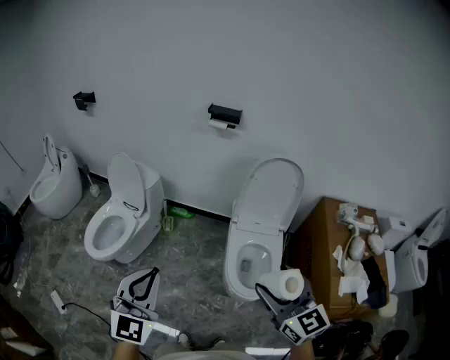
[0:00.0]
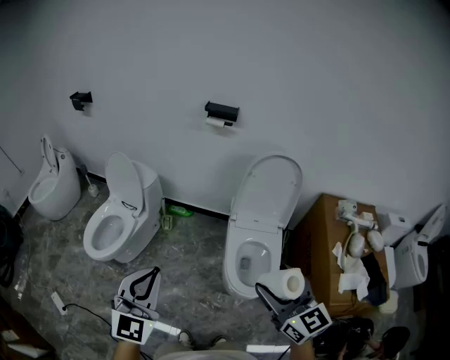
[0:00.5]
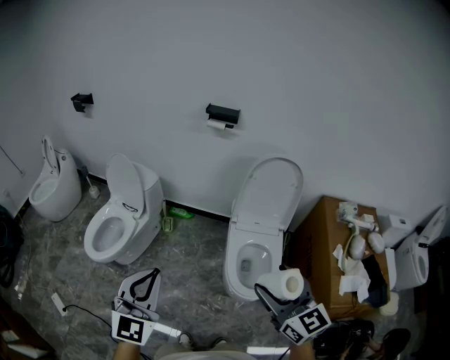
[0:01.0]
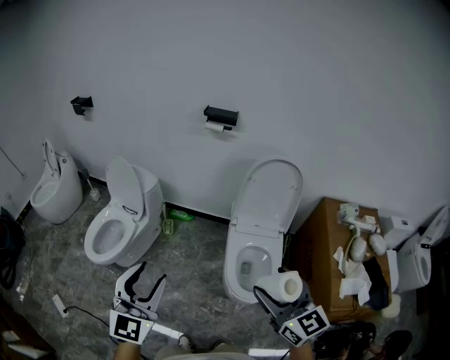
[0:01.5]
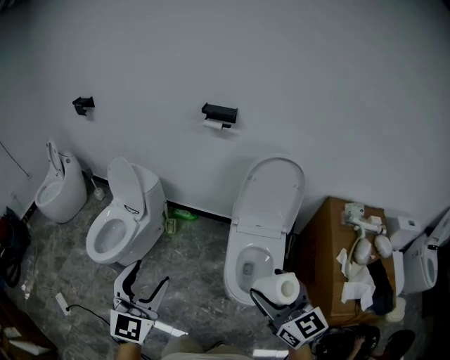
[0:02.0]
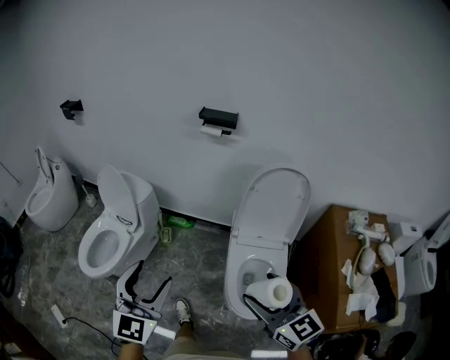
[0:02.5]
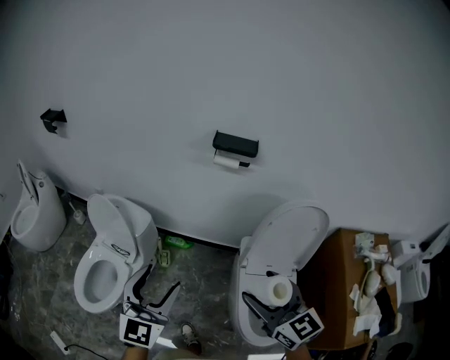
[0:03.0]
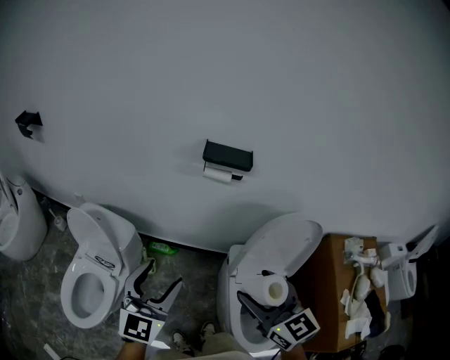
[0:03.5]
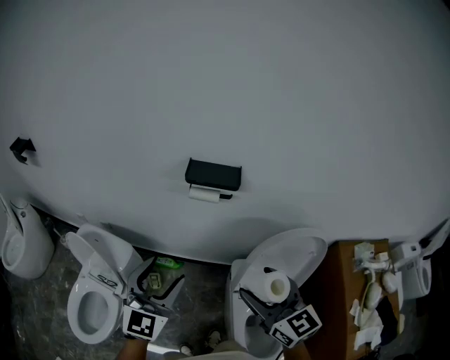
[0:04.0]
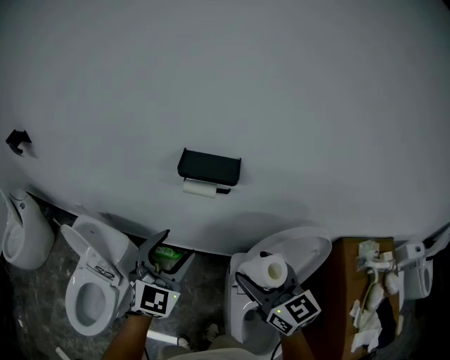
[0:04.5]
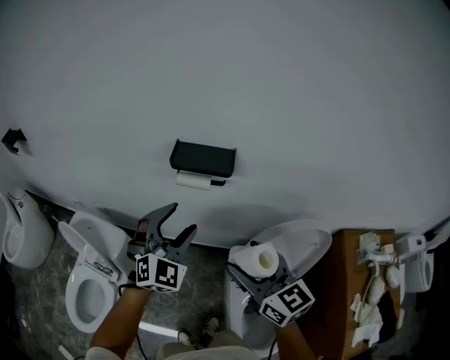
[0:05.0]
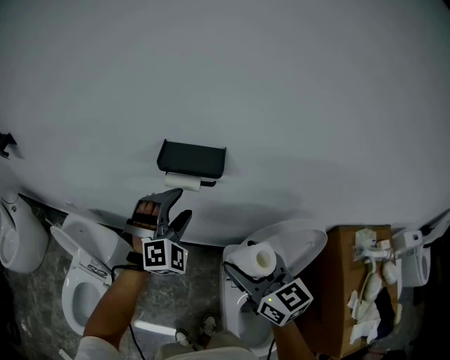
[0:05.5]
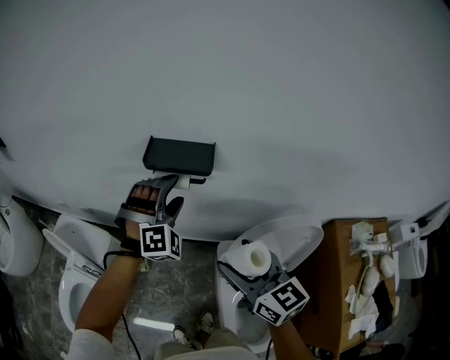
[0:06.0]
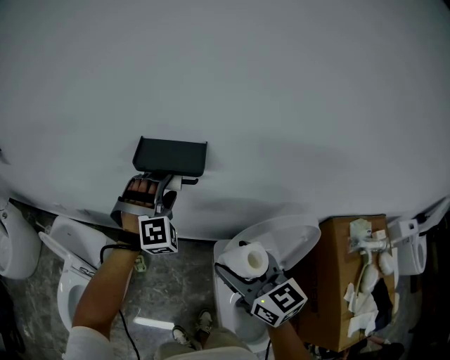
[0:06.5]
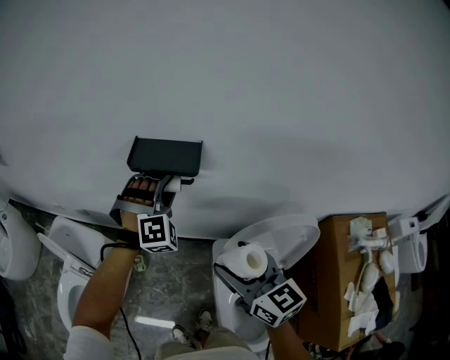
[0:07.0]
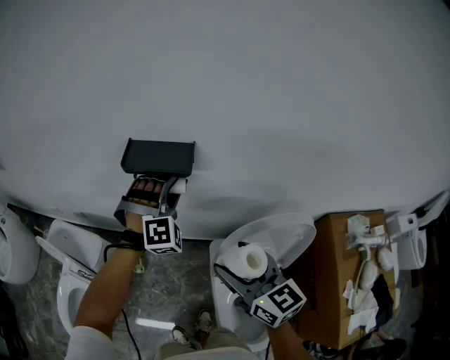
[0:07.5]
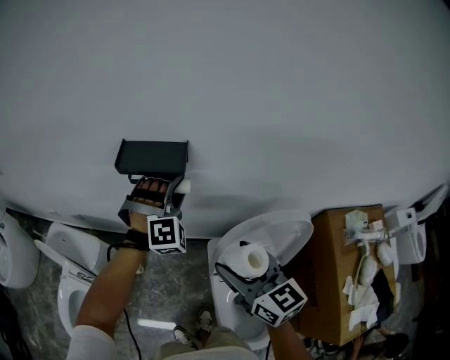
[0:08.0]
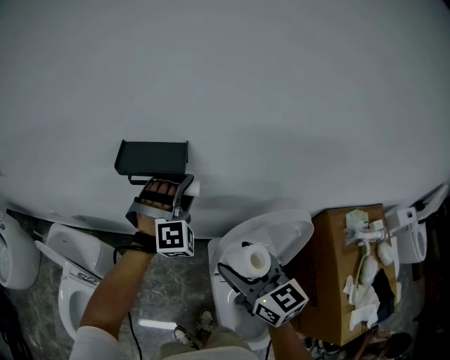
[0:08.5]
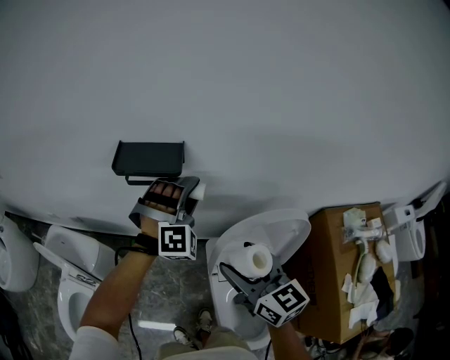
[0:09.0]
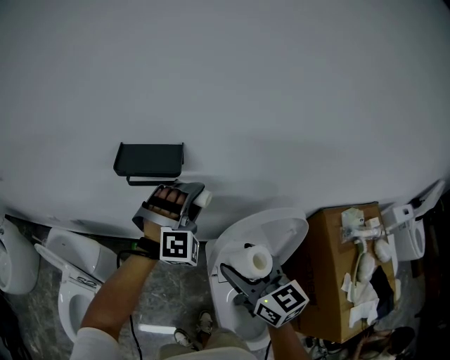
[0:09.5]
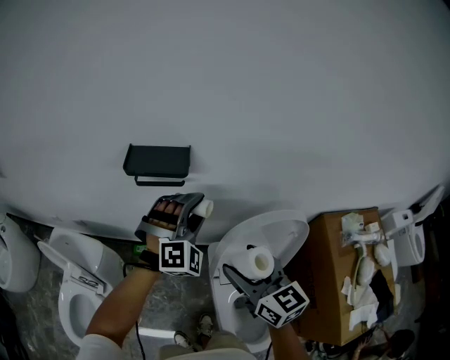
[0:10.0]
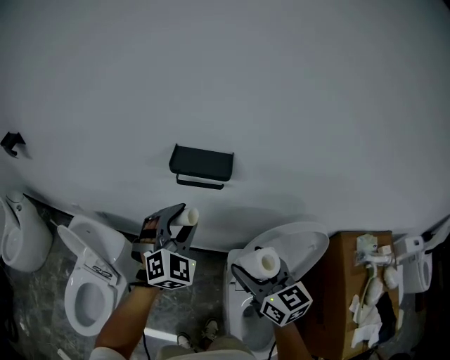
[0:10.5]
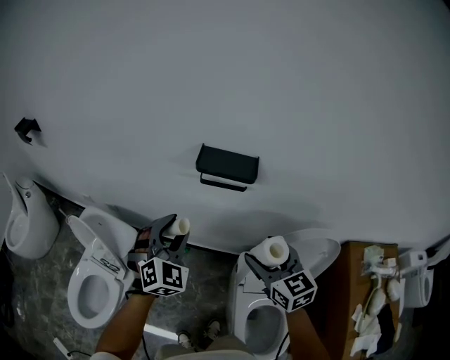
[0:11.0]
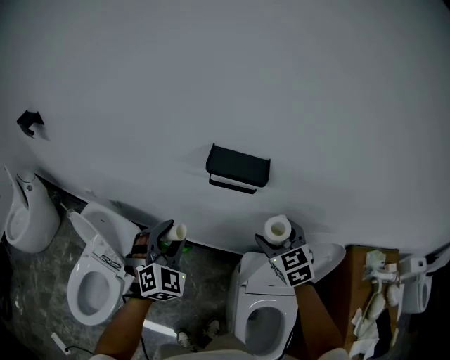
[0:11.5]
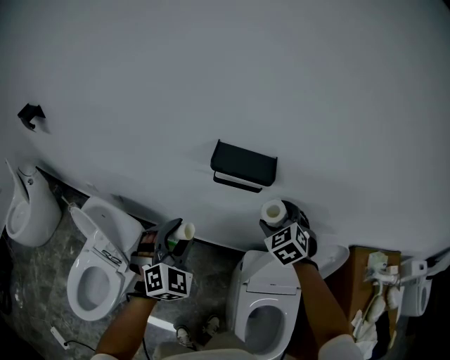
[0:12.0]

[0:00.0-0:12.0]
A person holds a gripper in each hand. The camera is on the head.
0:00.0 to 0:02.0: The left gripper shifts by some 5 cm, and opens up; the right gripper ends up about 5 cm from where it was.
0:02.0 to 0:04.0: The pair of grippers is taken forward, approximately 50 cm.
0:04.0 to 0:06.0: The right gripper moves forward and downward, about 10 cm. The left gripper shifts some 25 cm forward and to the right, and rolls clockwise, seen from behind, by about 50 degrees.
0:06.0 to 0:08.0: The left gripper shifts some 10 cm to the right, and closes up.
0:08.0 to 0:10.0: The left gripper moves backward, some 10 cm.
0:10.0 to 0:12.0: The right gripper is displaced forward by approximately 20 cm, and twists approximately 50 degrees counterclockwise, seen from behind, while the left gripper goes roughly 25 cm to the left, and turns by approximately 30 degrees.

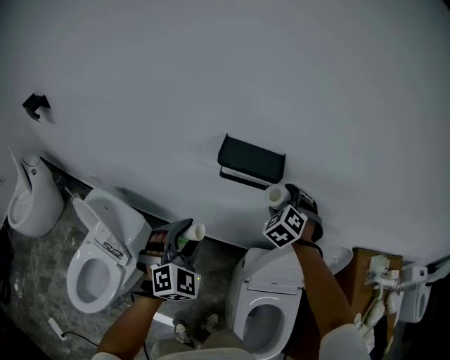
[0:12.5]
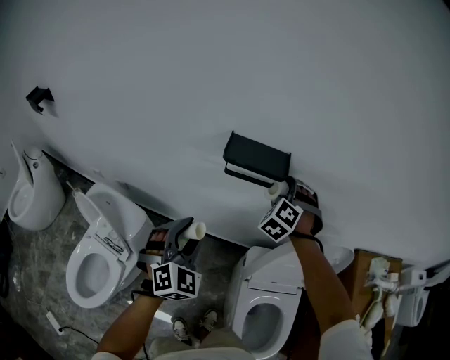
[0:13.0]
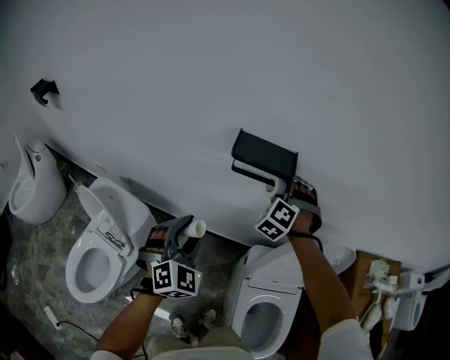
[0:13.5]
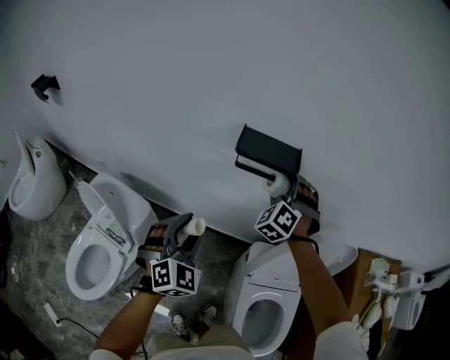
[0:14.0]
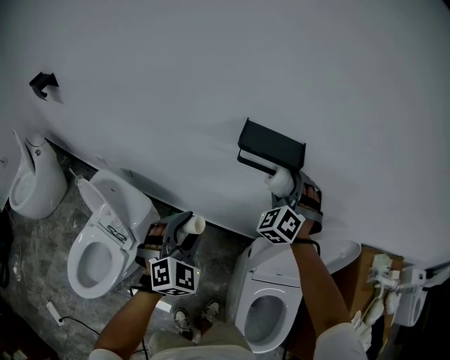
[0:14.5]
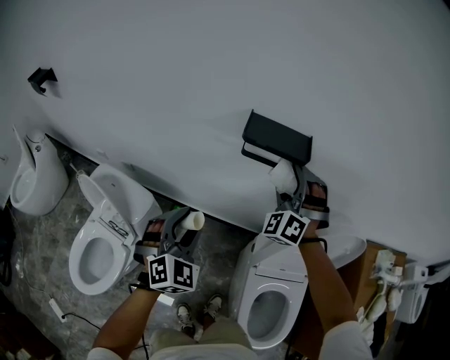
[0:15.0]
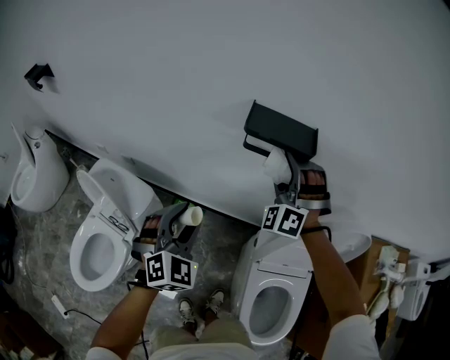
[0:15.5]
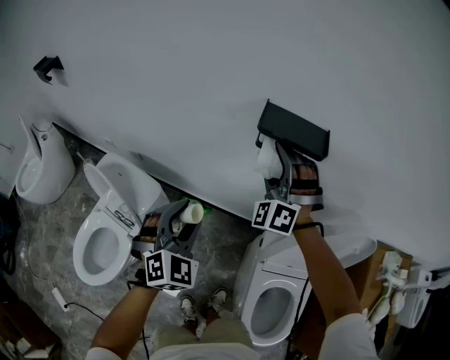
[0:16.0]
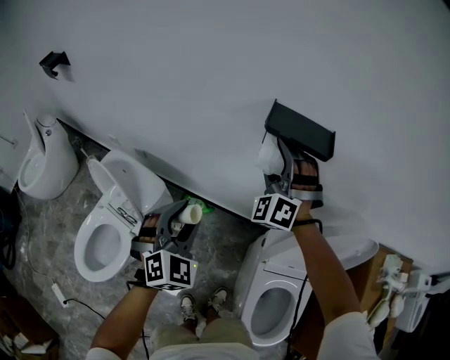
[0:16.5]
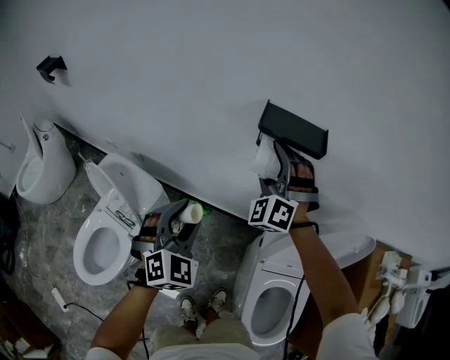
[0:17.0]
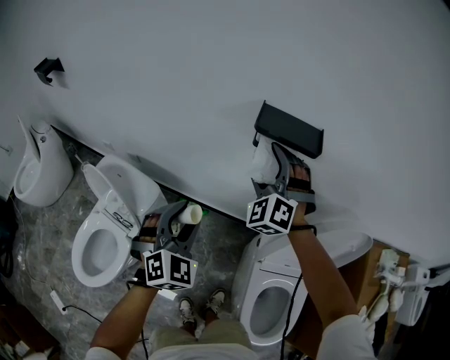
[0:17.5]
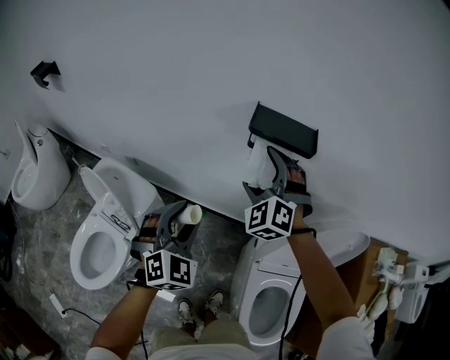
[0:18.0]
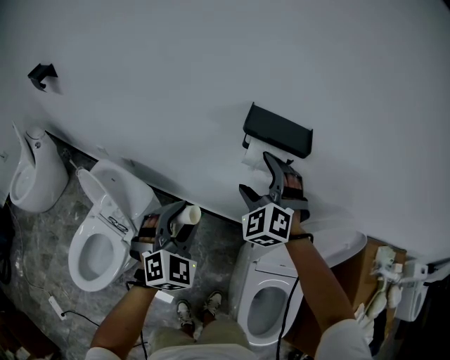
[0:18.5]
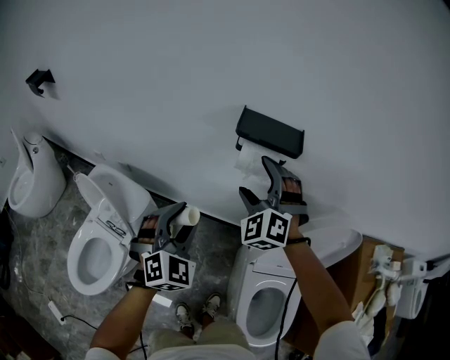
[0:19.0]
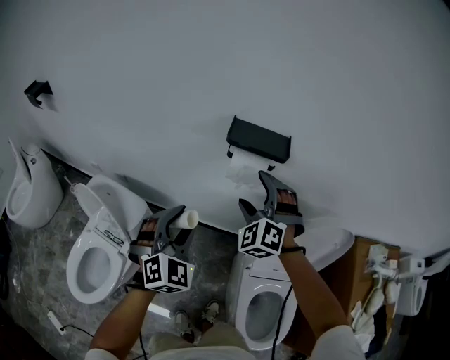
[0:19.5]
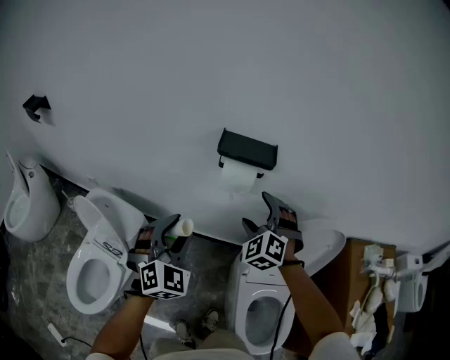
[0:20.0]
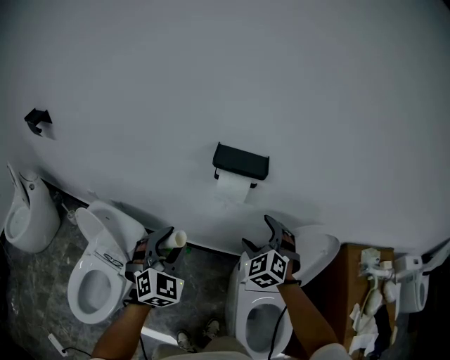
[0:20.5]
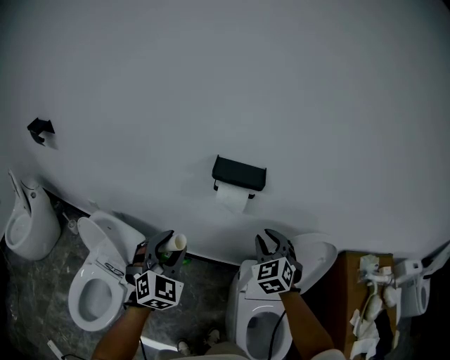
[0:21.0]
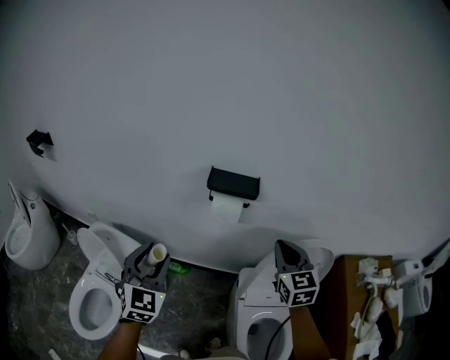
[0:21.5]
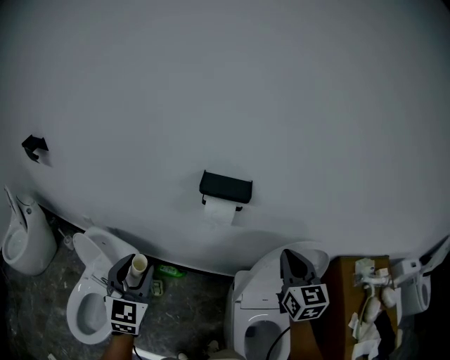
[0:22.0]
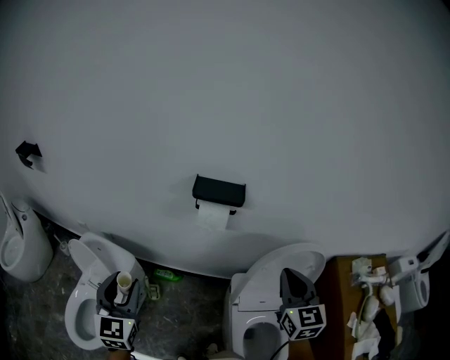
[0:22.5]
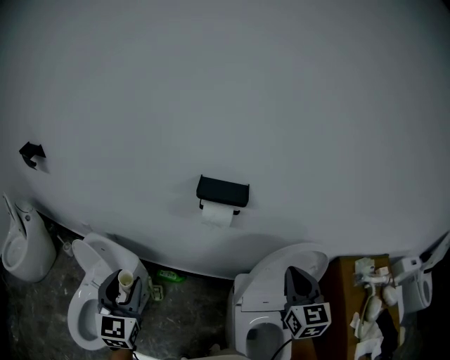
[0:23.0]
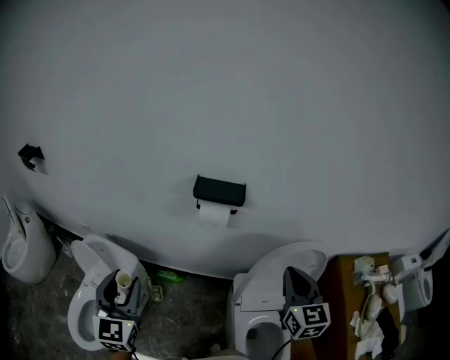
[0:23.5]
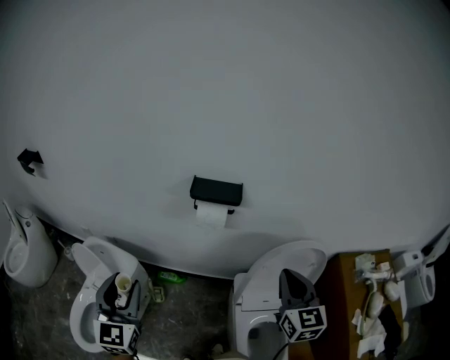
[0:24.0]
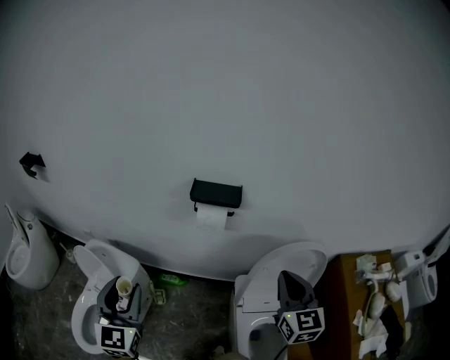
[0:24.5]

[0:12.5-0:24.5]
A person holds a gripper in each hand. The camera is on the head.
0:12.5 to 0:14.5: The right gripper shifts about 5 cm to the left, and changes its angle by some 20 degrees.
0:14.5 to 0:16.5: The left gripper ends up roughly 5 cm from where it was; the right gripper moves to the left, approximately 10 cm.
0:16.5 to 0:18.5: The right gripper is displaced backward by some 5 cm.
0:18.5 to 0:20.5: The left gripper goes about 5 cm upward, while the right gripper is displaced to the right and backward by roughly 15 cm.
0:20.5 to 0:22.5: The right gripper travels upward, to the right and backward by about 20 cm, rotates around the line of its fingers by some 40 degrees, clockwise from behind, and closes up, while the left gripper goes about 10 cm to the left and backward, and turns by about 30 degrees.
0:22.5 to 0:24.5: The grippers stay close to where they were, moving slightly.

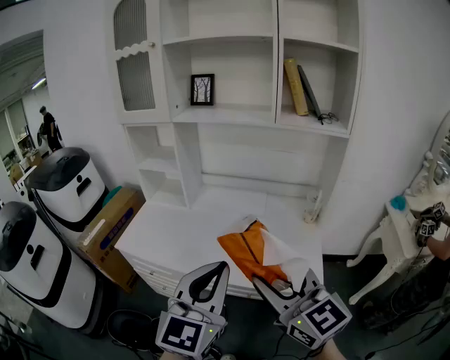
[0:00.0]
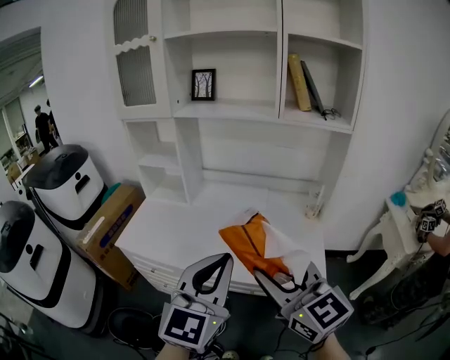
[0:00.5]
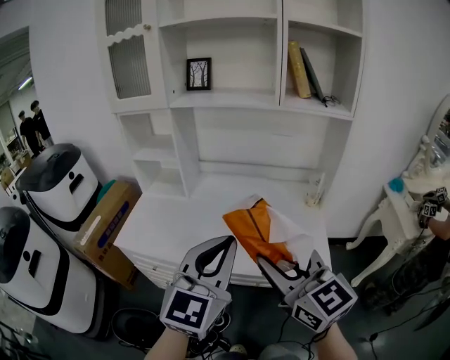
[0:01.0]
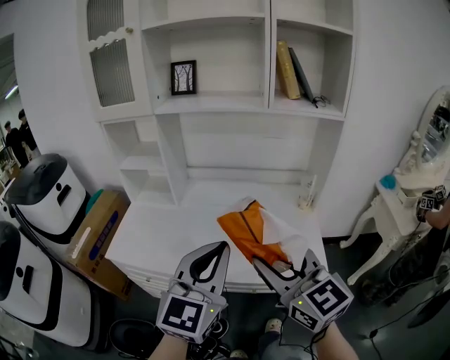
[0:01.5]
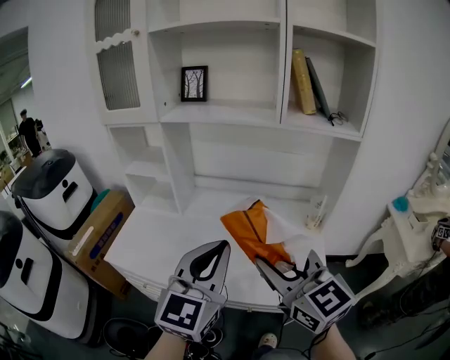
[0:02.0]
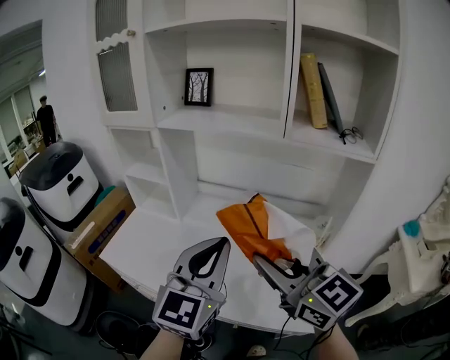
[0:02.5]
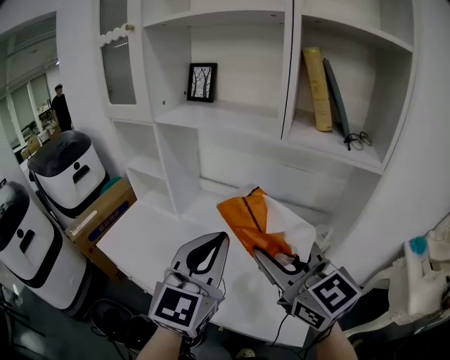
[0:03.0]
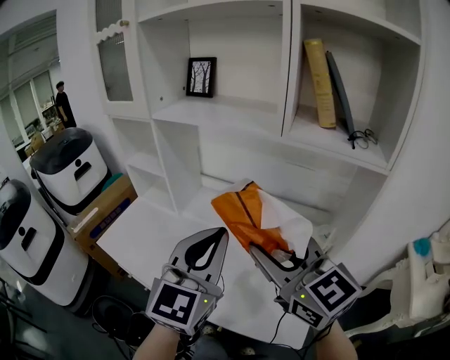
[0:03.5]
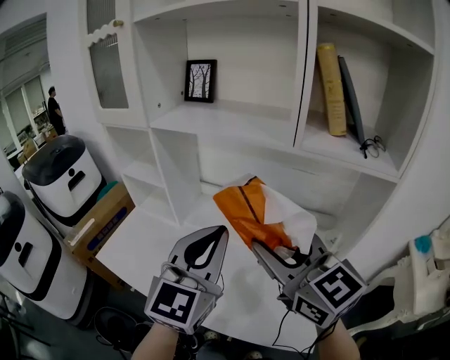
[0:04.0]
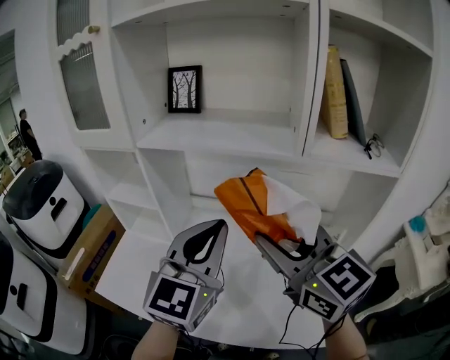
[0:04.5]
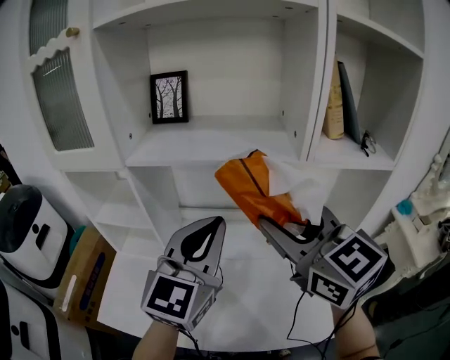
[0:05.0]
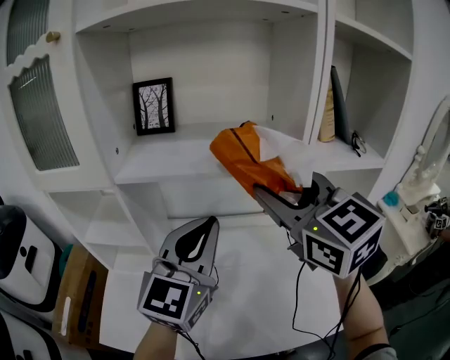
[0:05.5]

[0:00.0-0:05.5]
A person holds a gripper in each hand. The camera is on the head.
0:00.0 to 0:02.0: The grippers both shift forward by roughly 10 cm.
0:02.0 to 0:03.5: The right gripper travels forward and to the right by some 15 cm; the left gripper goes some 15 cm to the right and forward.
0:03.5 to 0:05.5: The left gripper moves some 20 cm, and turns by about 30 degrees, while the right gripper changes place by some 20 cm, and rotates roughly 30 degrees.
